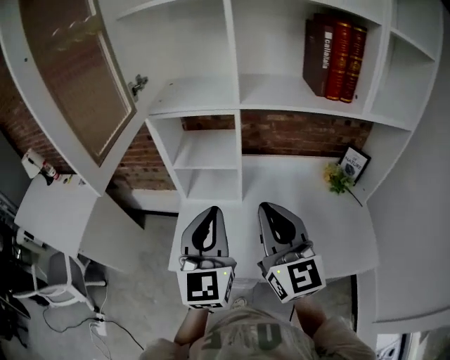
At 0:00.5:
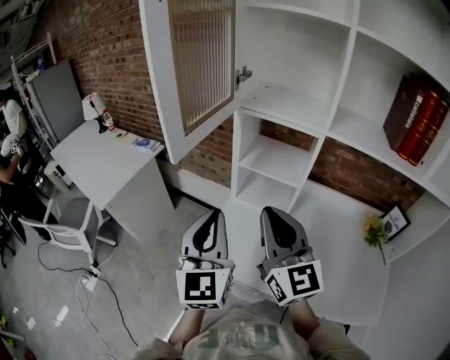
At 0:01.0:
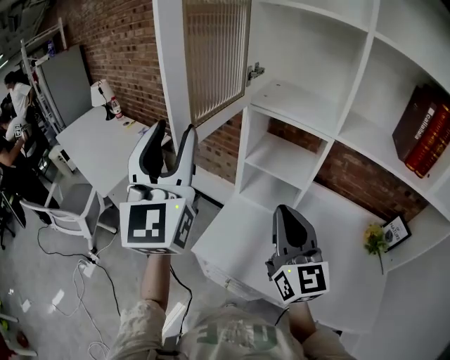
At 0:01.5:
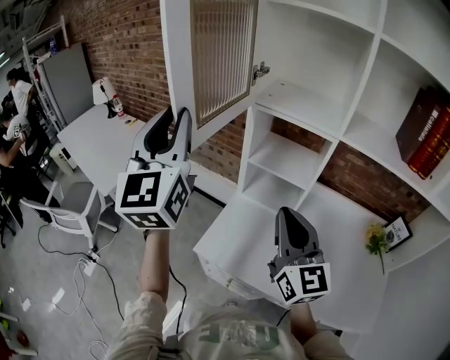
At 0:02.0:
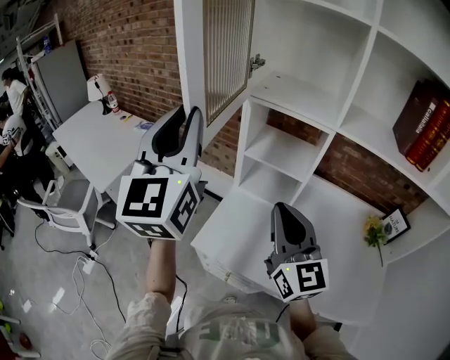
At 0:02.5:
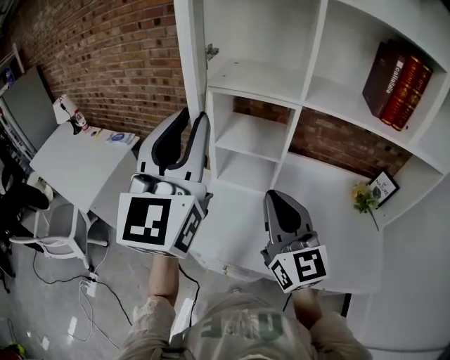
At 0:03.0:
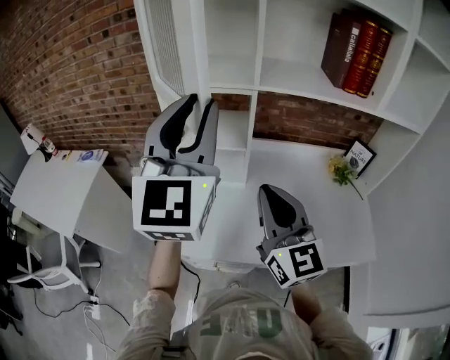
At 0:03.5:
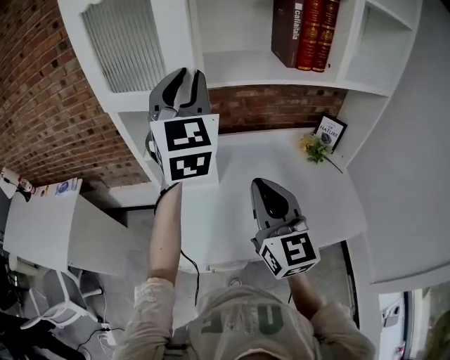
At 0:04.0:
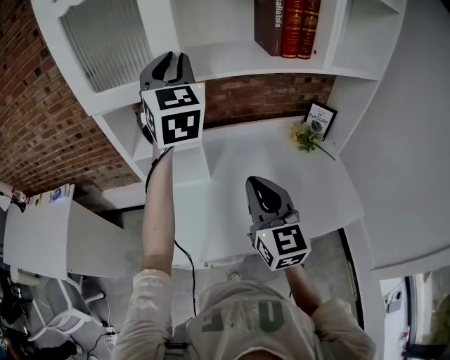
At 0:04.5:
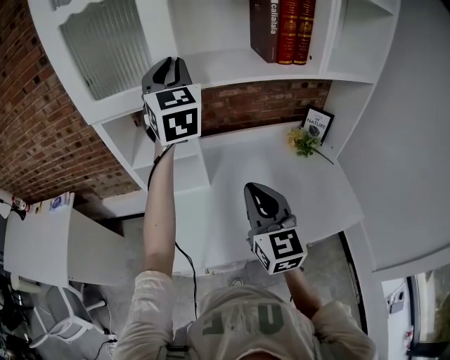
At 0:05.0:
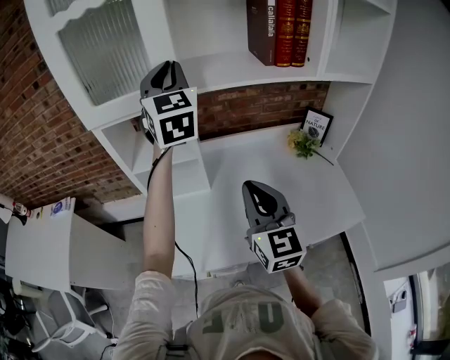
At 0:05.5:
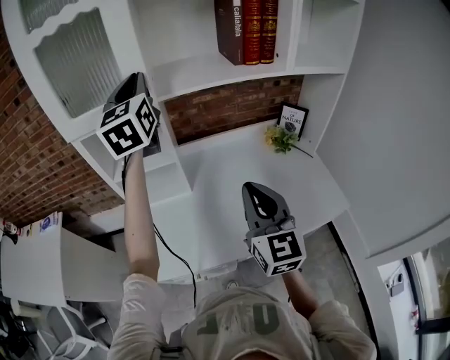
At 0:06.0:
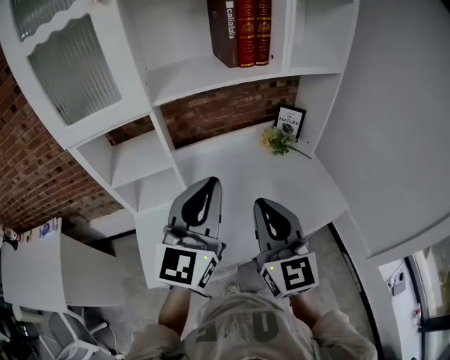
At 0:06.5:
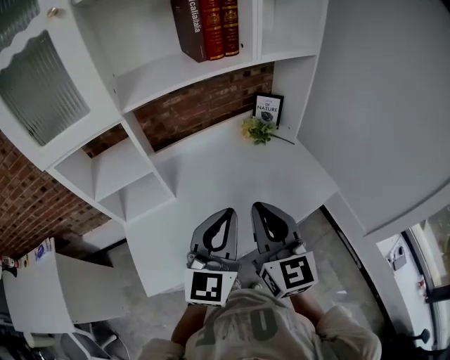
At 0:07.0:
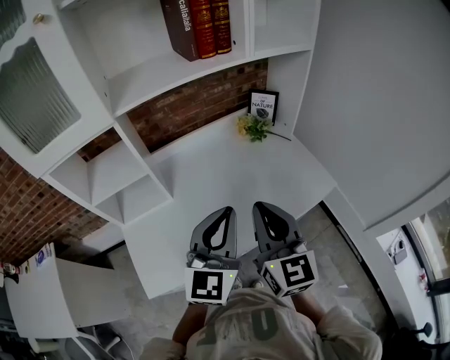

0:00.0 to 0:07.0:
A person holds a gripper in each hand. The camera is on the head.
0:00.0 to 0:02.0: The left gripper moves to the left, upward and forward, some 30 cm, rotates roughly 20 degrees, and opens, then closes again; the right gripper shifts roughly 15 cm to the left and forward.
0:02.0 to 0:03.5: The right gripper changes place by some 15 cm, and turns by roughly 30 degrees. Meanwhile the left gripper moves approximately 30 cm, and turns by some 30 degrees.
0:03.5 to 0:05.0: The left gripper goes some 10 cm forward.
0:05.0 to 0:07.0: The left gripper changes place by roughly 40 cm, and swivels some 50 degrees. The right gripper changes place by roughly 15 cm.

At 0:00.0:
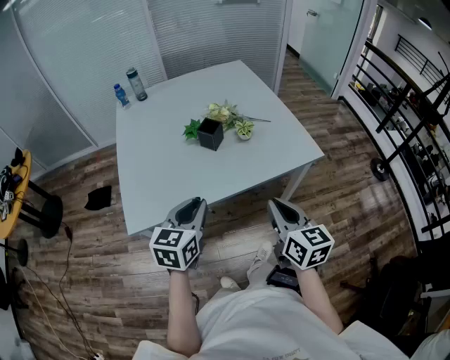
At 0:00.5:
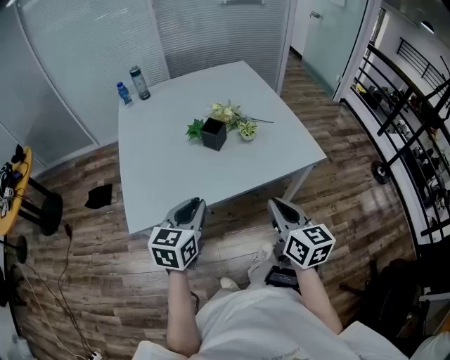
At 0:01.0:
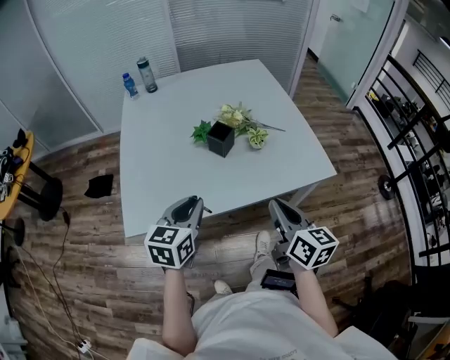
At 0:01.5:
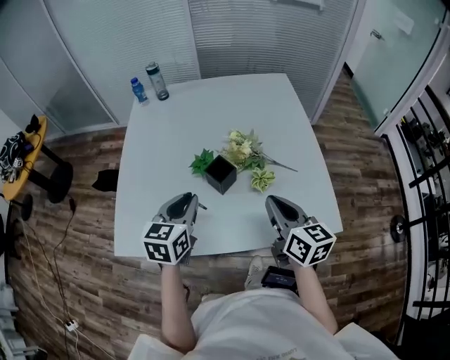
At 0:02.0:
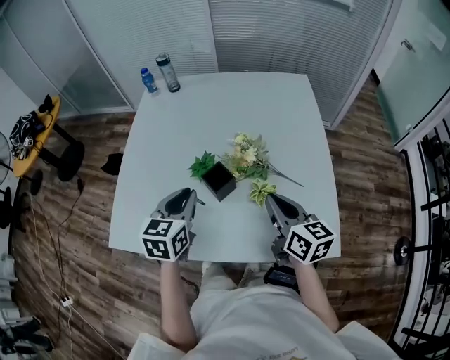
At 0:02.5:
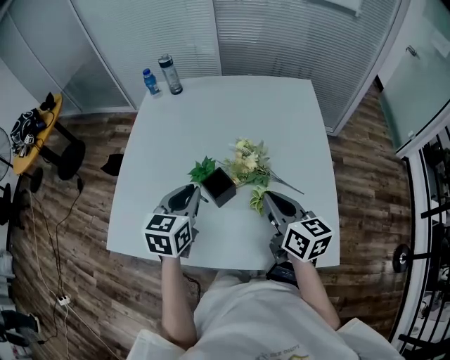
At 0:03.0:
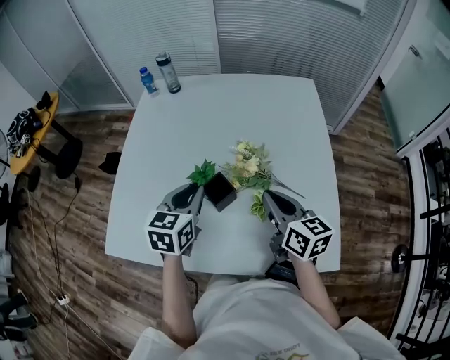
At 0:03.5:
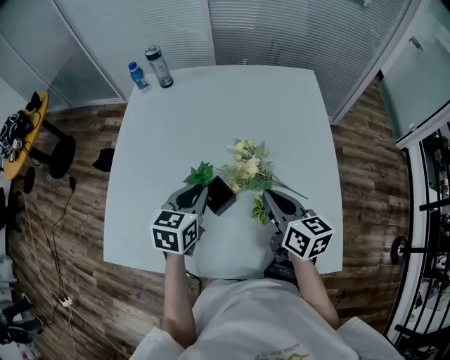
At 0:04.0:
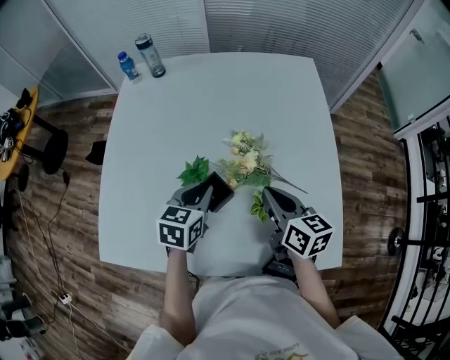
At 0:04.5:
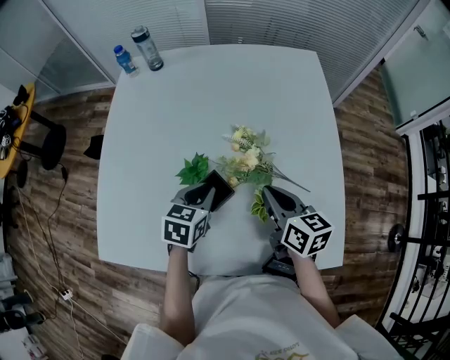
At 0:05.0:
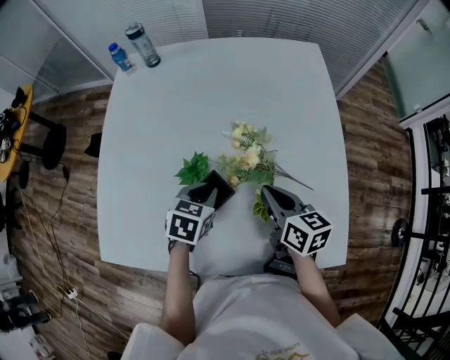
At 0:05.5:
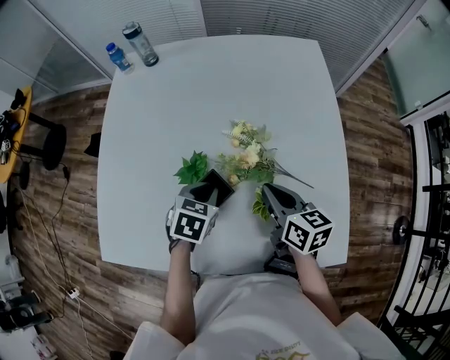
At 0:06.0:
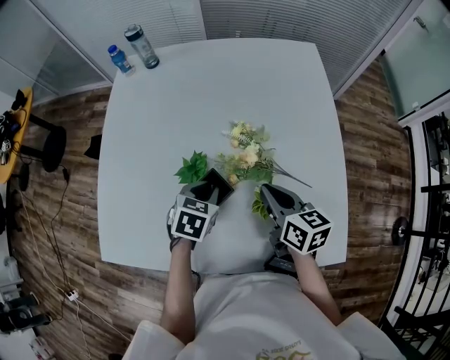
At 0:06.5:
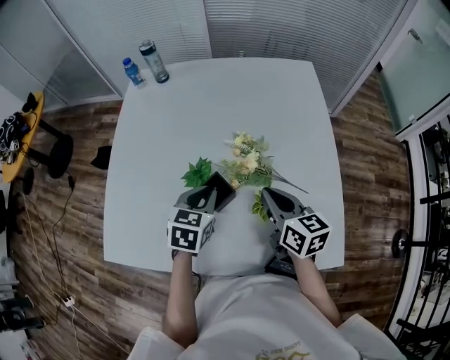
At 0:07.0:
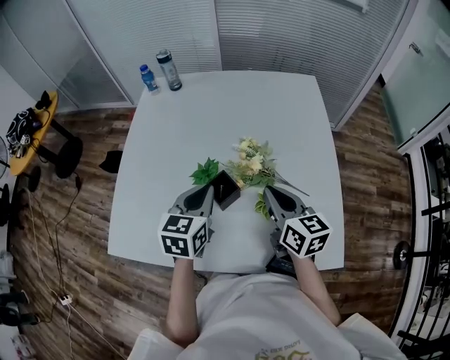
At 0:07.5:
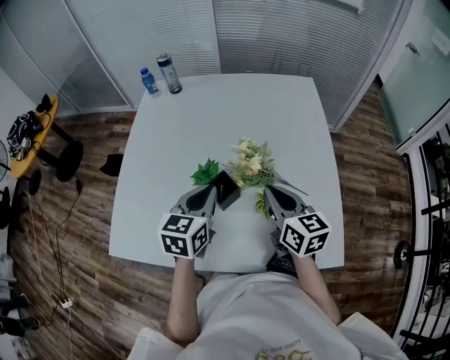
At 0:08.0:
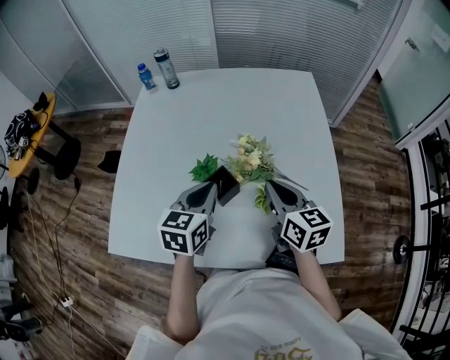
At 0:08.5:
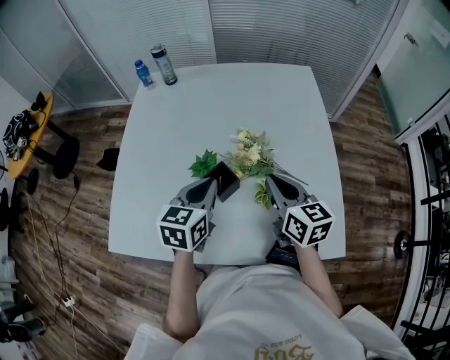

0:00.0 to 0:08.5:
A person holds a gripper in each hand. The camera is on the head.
0:00.0 to 0:02.0: The left gripper changes place by approximately 30 cm, and swivels approximately 30 degrees; the right gripper moves approximately 40 cm, and swivels some 30 degrees.
0:02.0 to 0:04.0: The right gripper moves forward and downward, approximately 10 cm, while the left gripper travels forward, downward and to the right by roughly 15 cm.
0:06.5 to 0:08.5: The left gripper goes approximately 10 cm upward.

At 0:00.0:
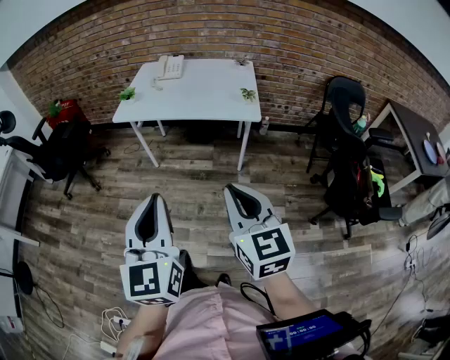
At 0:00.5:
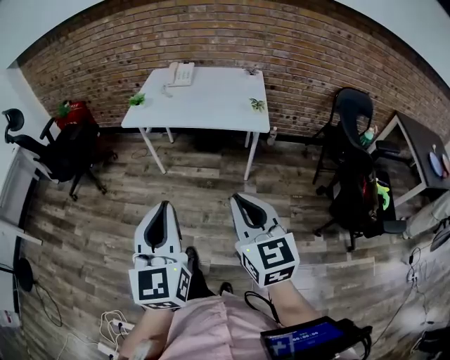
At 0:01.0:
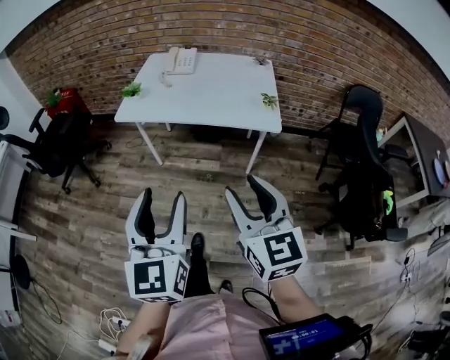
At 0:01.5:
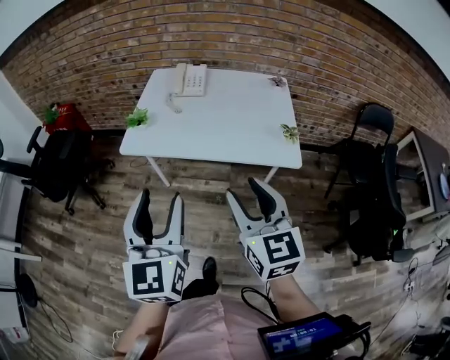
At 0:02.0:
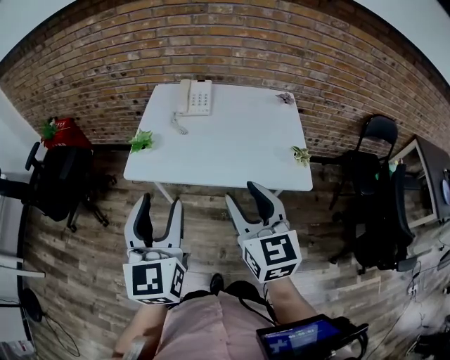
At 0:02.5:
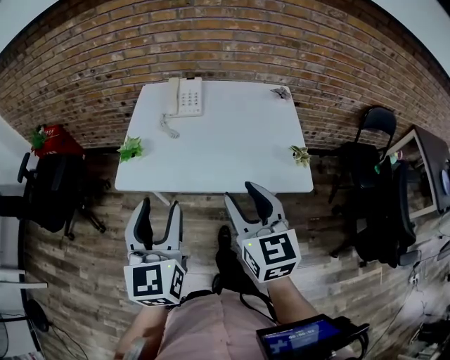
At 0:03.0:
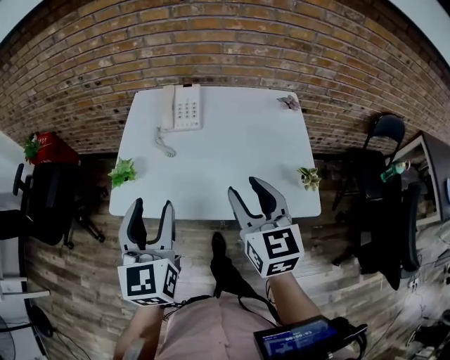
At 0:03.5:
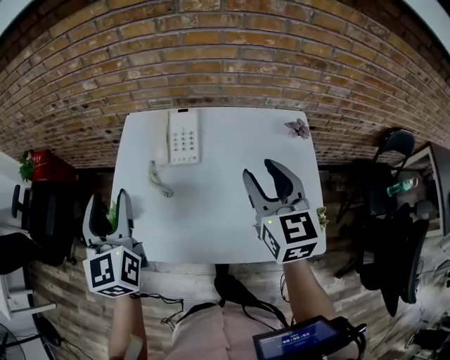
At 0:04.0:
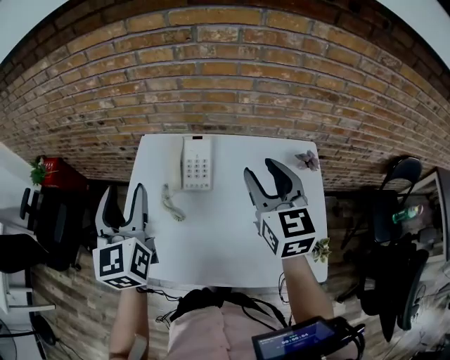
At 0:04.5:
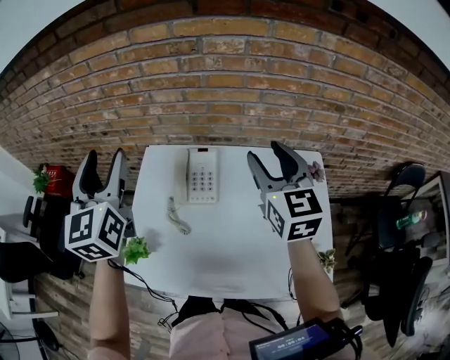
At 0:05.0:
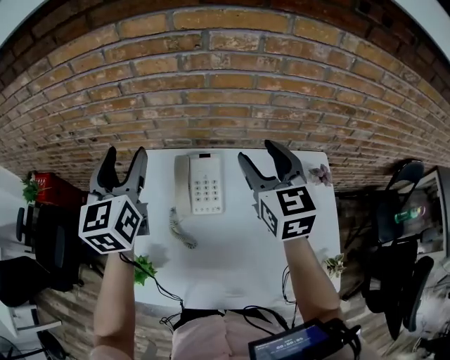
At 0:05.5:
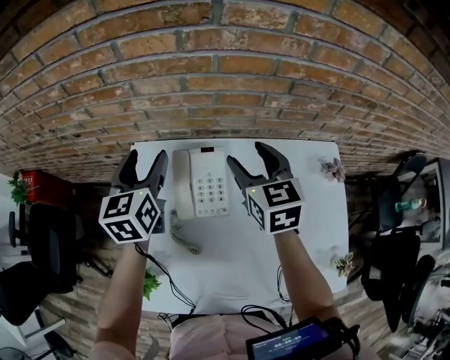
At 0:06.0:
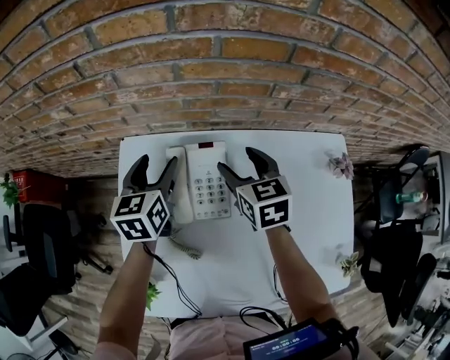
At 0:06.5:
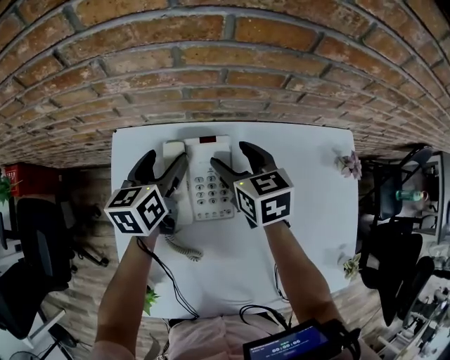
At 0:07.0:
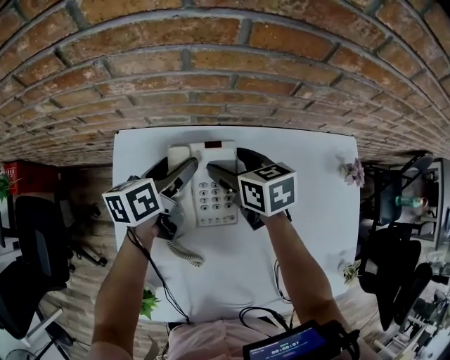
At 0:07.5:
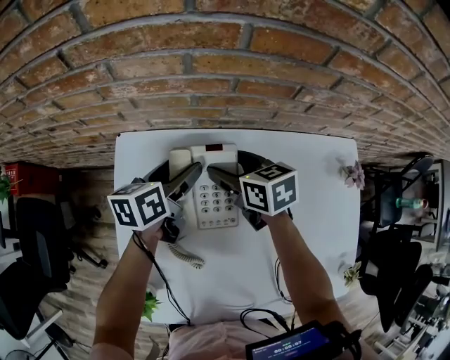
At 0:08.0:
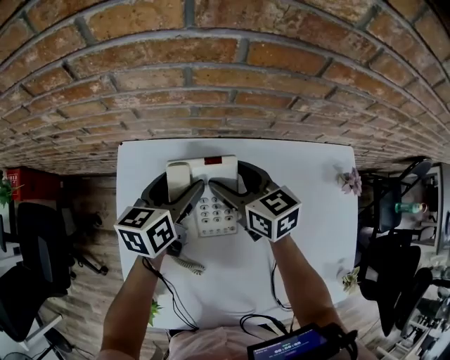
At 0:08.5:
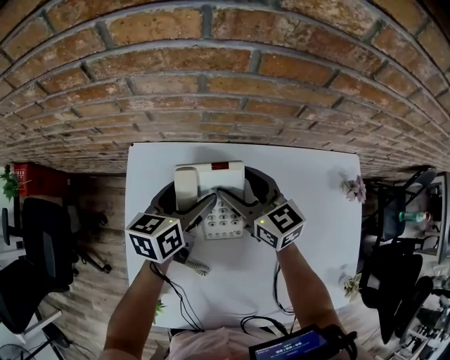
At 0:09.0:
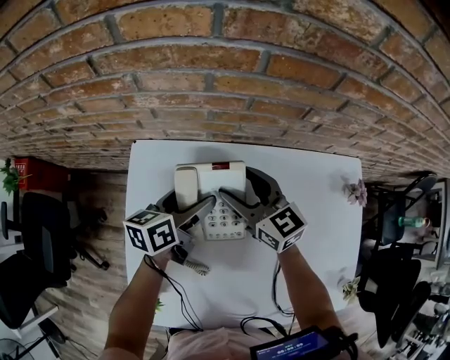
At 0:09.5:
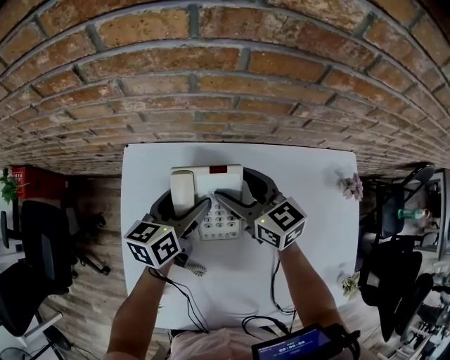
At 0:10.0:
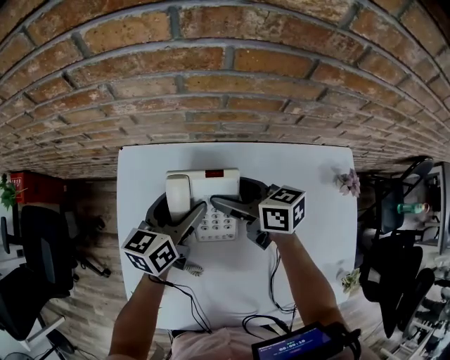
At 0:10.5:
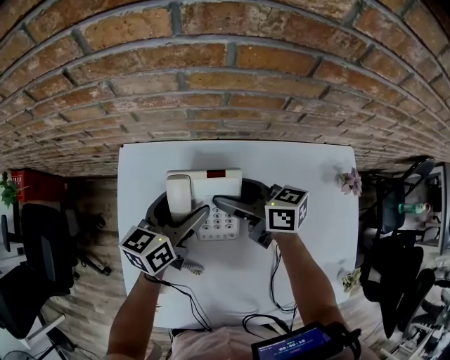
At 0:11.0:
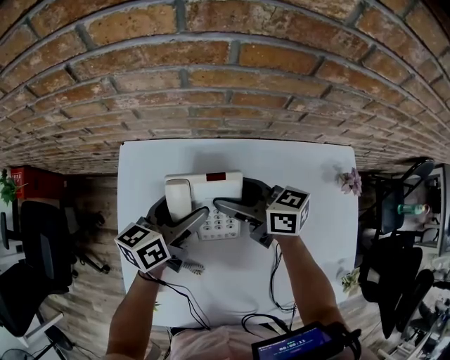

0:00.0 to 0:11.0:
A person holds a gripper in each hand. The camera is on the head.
0:00.0 to 0:02.0: The two grippers go about 40 cm forward. The right gripper opens its fingers. The left gripper opens its fingers.
0:02.0 to 0:03.5: Both grippers move forward, approximately 35 cm.
0:03.5 to 0:05.5: The two grippers go about 30 cm forward. The left gripper turns by roughly 20 degrees.
0:05.5 to 0:07.5: The right gripper travels downward by approximately 15 cm, and turns by some 30 degrees. The left gripper is displaced downward and to the right by approximately 15 cm, and turns by approximately 40 degrees.
0:07.5 to 0:09.0: The right gripper ends up about 5 cm from where it was, and rotates approximately 30 degrees.
0:09.0 to 0:11.0: The right gripper changes its angle by some 30 degrees.
